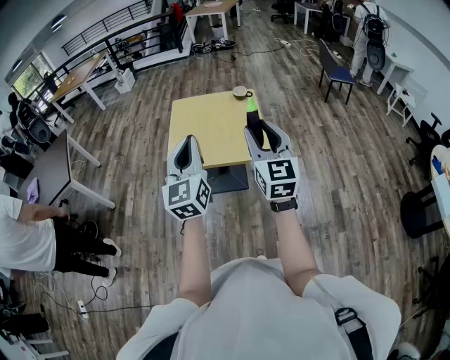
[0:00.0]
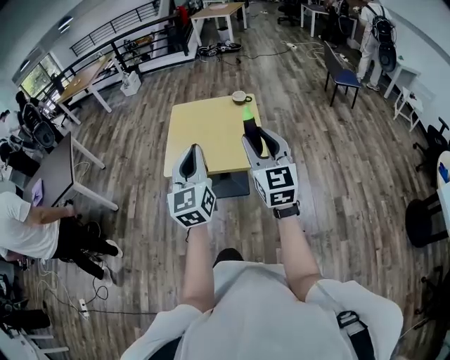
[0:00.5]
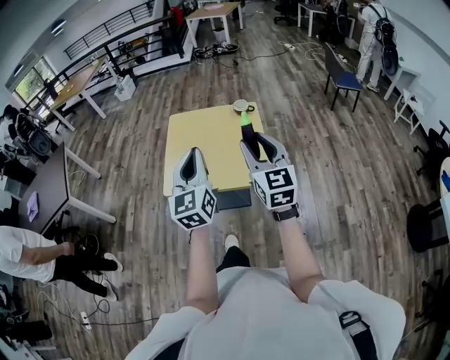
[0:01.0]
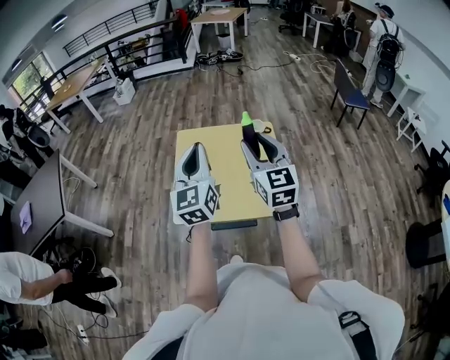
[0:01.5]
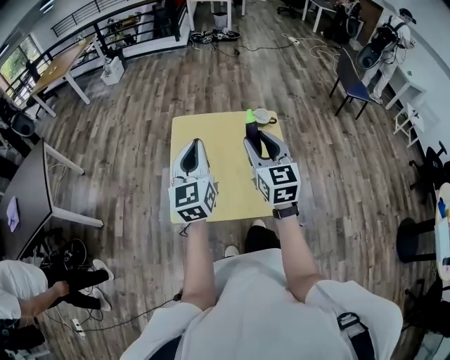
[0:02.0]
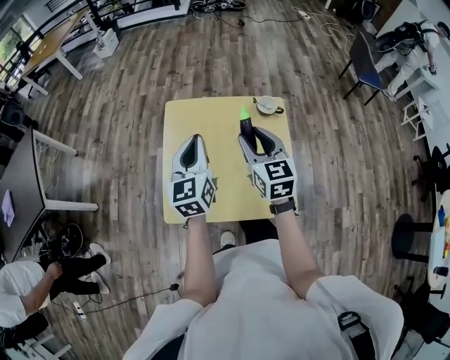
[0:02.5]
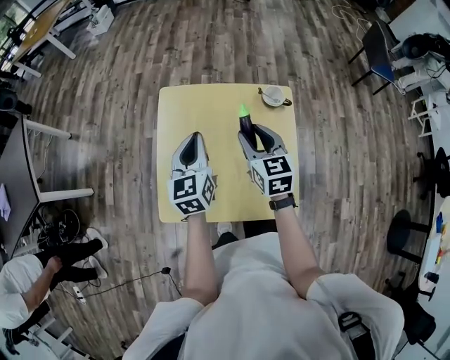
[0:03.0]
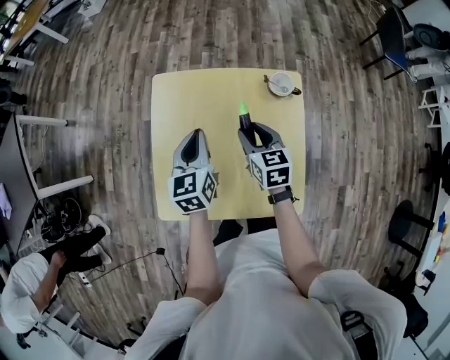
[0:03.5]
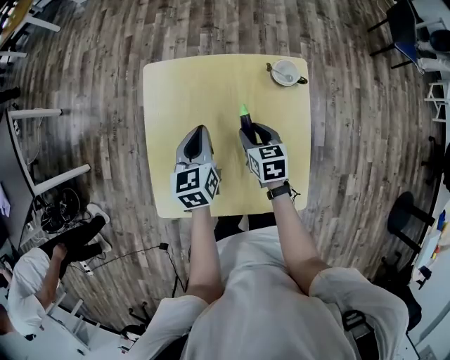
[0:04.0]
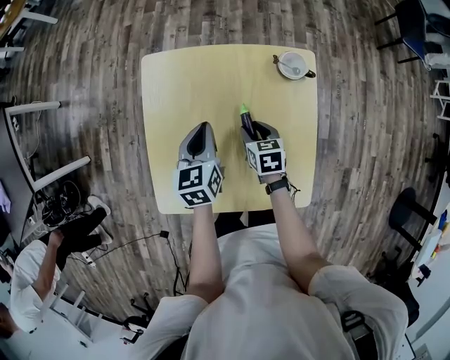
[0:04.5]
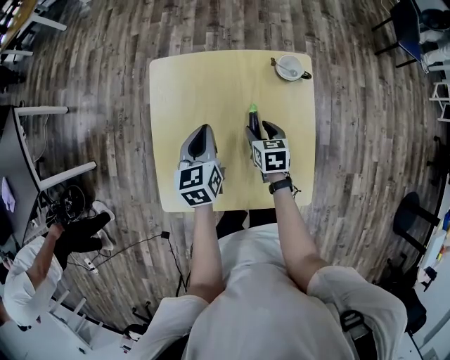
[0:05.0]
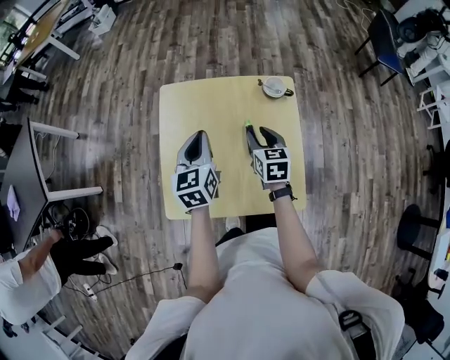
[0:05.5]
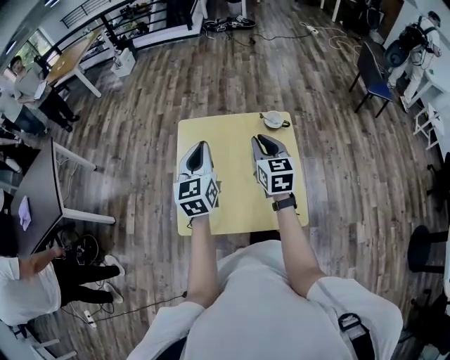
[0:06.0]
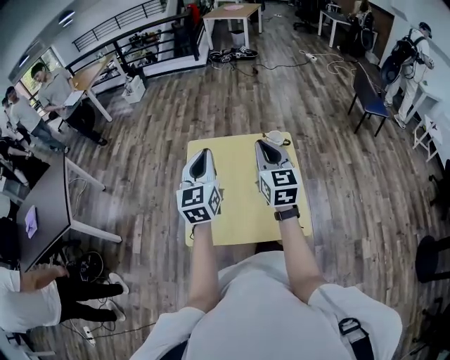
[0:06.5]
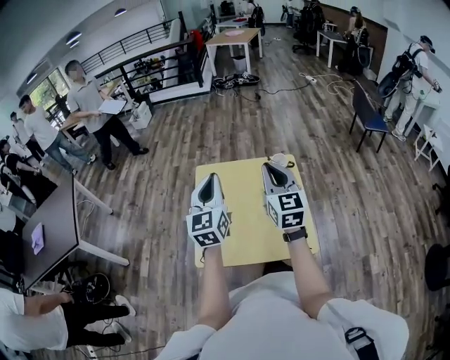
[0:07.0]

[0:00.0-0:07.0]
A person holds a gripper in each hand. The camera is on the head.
0:00.0 to 0:02.0: The grippers both shift forward by some 35 cm.
0:02.0 to 0:03.5: Both grippers travel together downward and forward, some 30 cm. The left gripper rotates some 30 degrees; the right gripper swivels about 30 degrees.
0:03.5 to 0:05.0: The right gripper travels downward by roughly 10 cm, while the left gripper moves downward, roughly 5 cm.
0:05.0 to 0:07.0: Both grippers travel together upward, roughly 35 cm. The left gripper points its fingers roughly 30 degrees further upward. Meanwhile the right gripper tilts its fingers about 50 degrees upward, and closes its fingers.

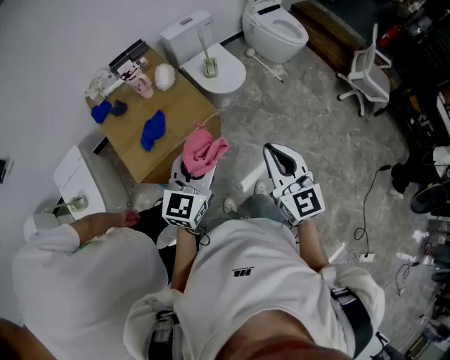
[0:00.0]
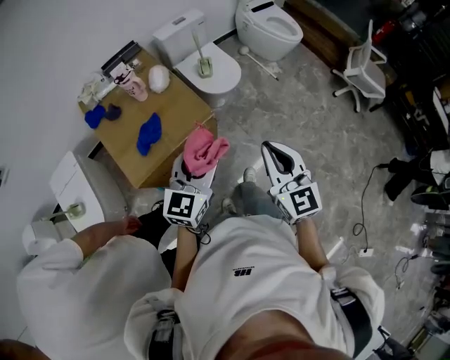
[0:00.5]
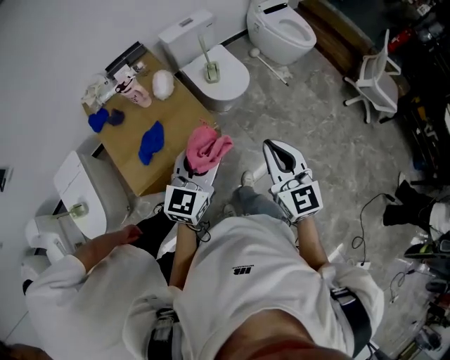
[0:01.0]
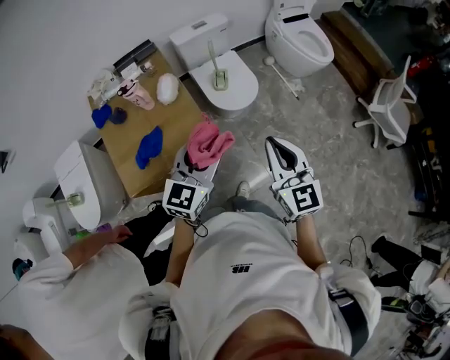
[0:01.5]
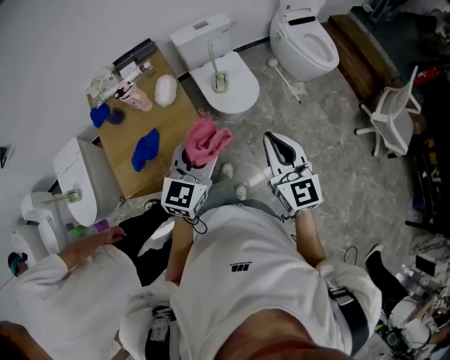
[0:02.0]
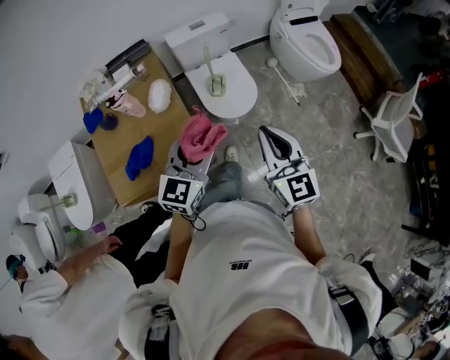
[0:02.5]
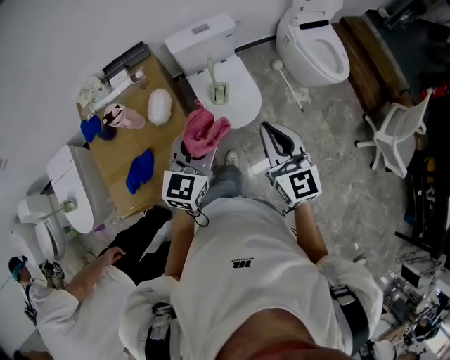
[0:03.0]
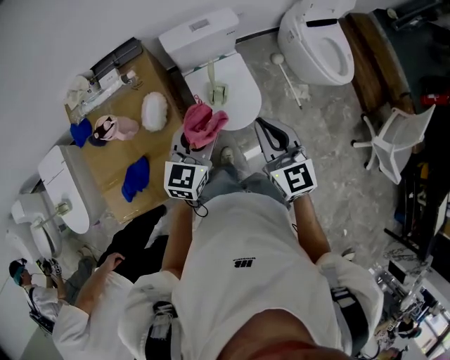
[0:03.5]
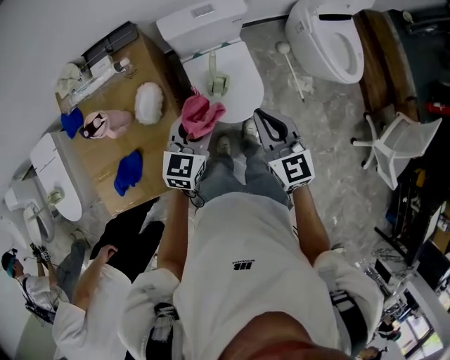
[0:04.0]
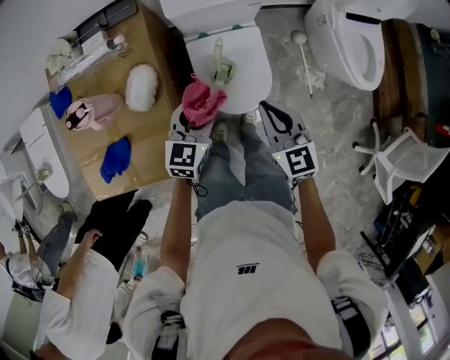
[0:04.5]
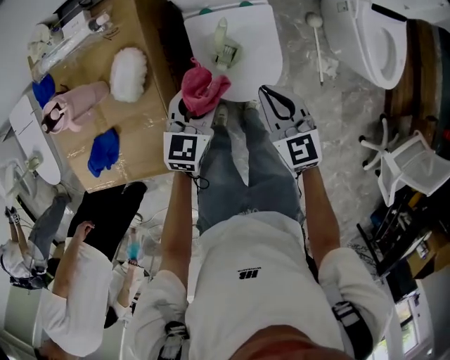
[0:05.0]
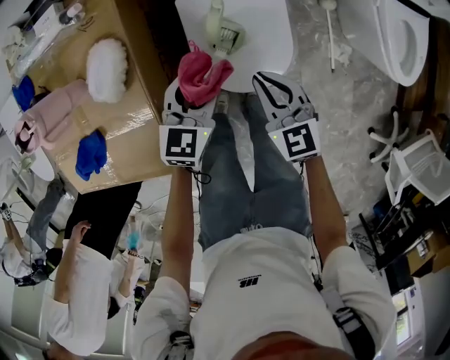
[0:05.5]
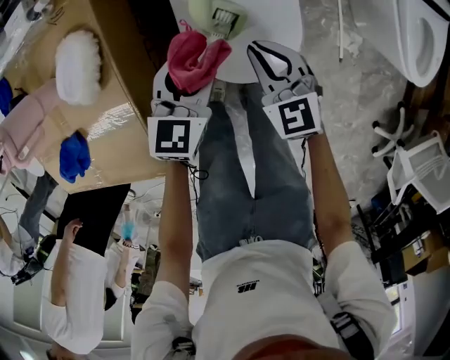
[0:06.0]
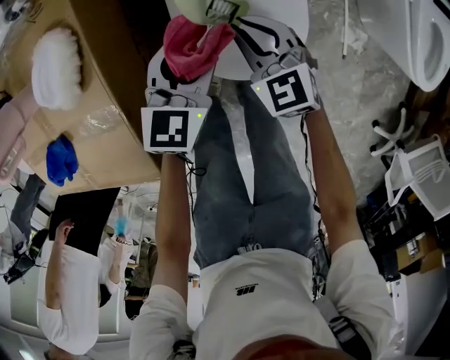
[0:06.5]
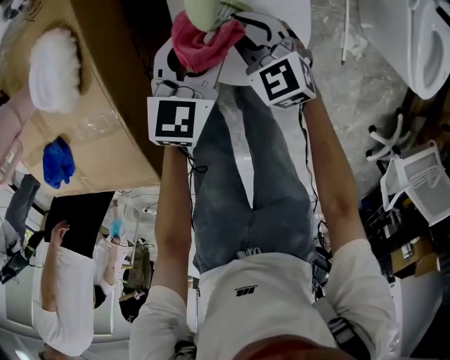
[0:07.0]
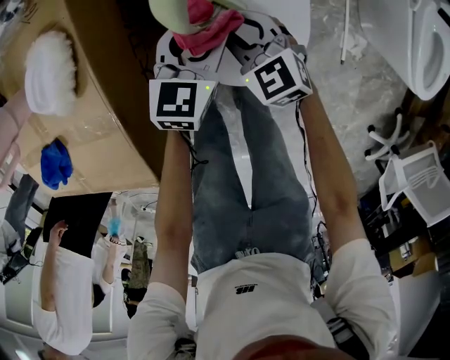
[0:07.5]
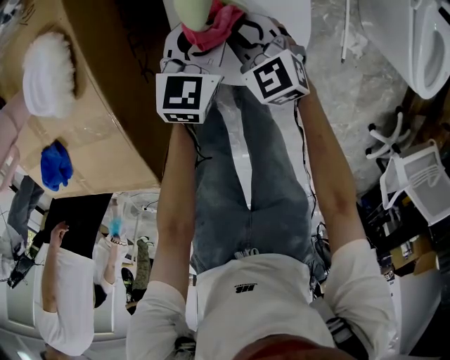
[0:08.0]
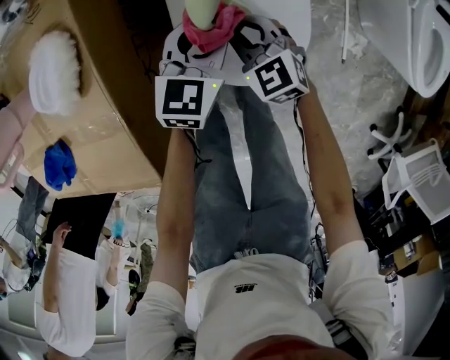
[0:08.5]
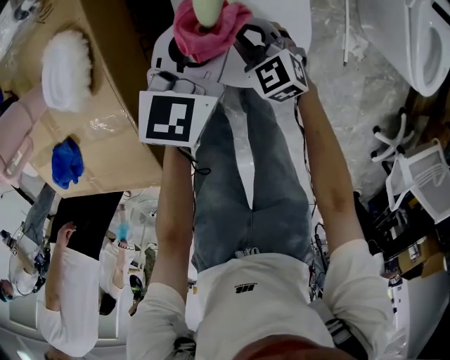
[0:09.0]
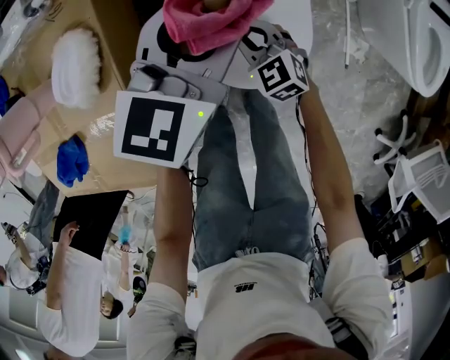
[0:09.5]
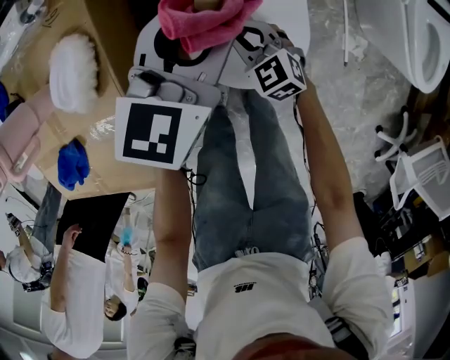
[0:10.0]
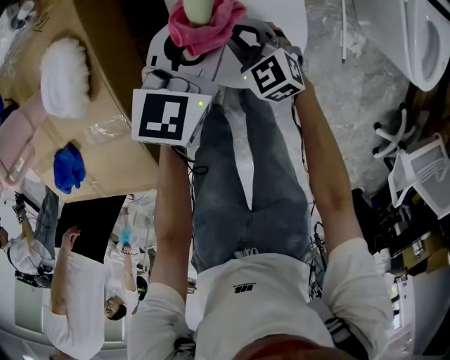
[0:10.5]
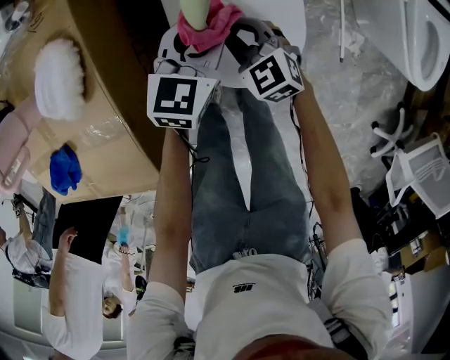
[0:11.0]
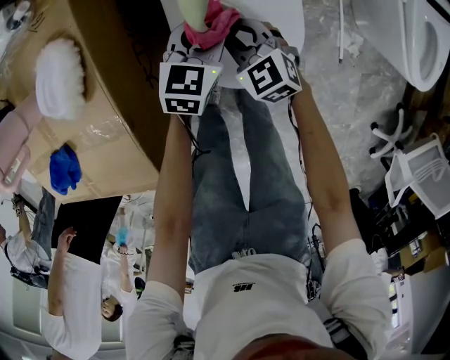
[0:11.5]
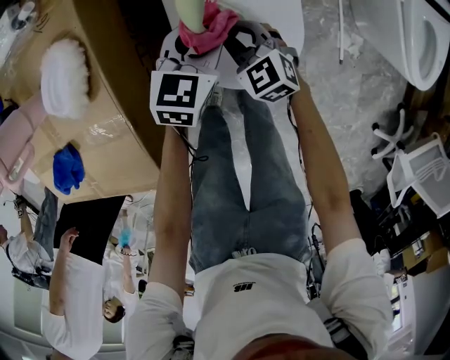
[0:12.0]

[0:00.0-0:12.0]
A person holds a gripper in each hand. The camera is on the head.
0:00.0 to 0:02.0: The grippers both shift forward by some 25 cm.
0:02.0 to 0:04.0: The right gripper is displaced forward by some 40 cm. Meanwhile the left gripper moves forward and downward, approximately 40 cm.
0:04.0 to 0:06.0: Both grippers move downward, some 35 cm. The right gripper rotates about 30 degrees.
0:06.0 to 0:08.0: Both grippers move downward, approximately 10 cm.
0:08.0 to 0:10.0: The left gripper is displaced upward by some 20 cm.
0:10.0 to 0:12.0: The left gripper shifts roughly 15 cm downward.

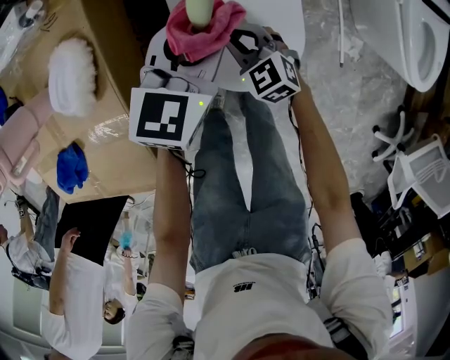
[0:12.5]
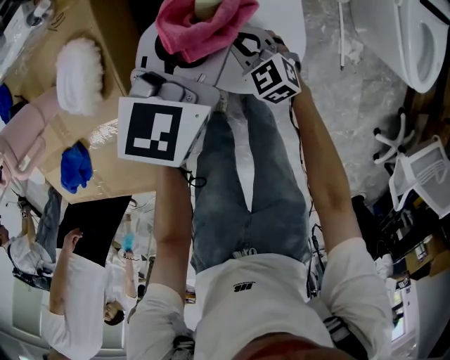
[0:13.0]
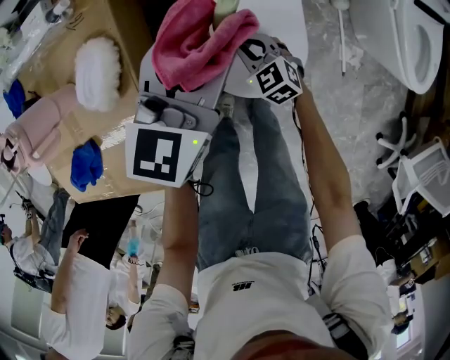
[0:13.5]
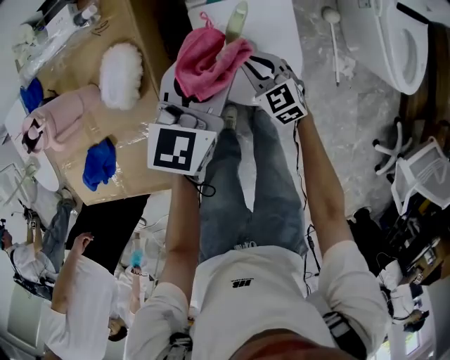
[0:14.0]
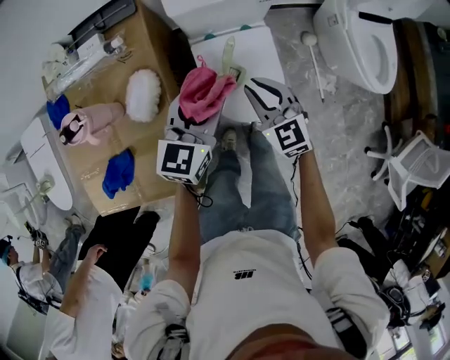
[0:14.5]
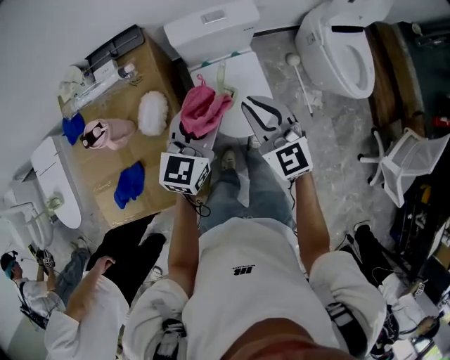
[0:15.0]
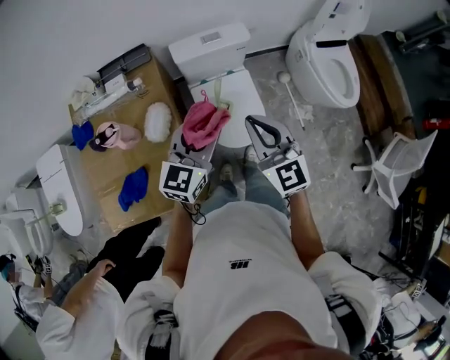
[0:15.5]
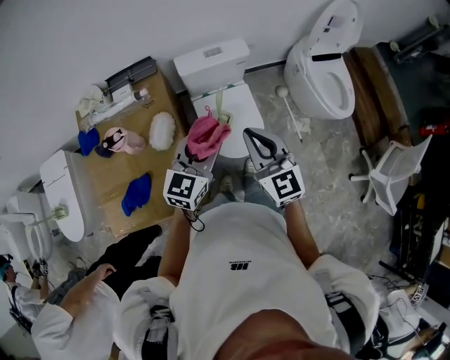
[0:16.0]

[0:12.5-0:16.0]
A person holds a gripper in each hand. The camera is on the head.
0:12.5 to 0:14.5: The two grippers go roughly 25 cm upward. The right gripper changes its angle by approximately 20 degrees.
0:14.5 to 0:16.0: The two grippers go some 25 cm upward and backward.

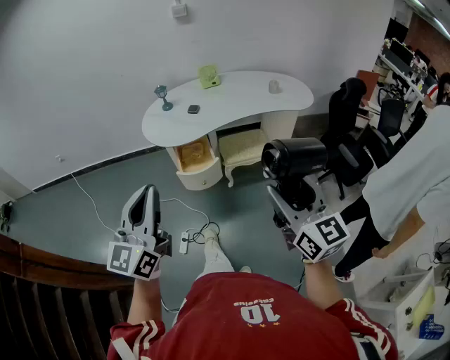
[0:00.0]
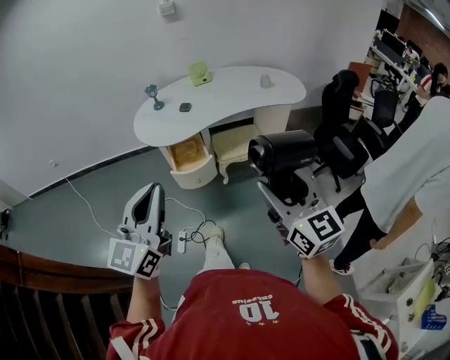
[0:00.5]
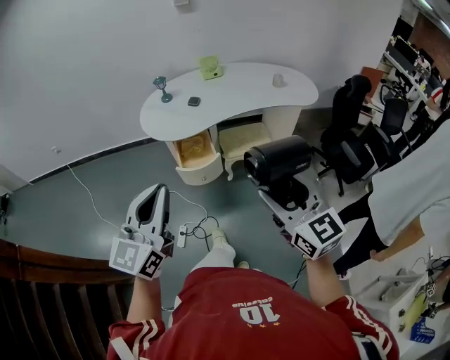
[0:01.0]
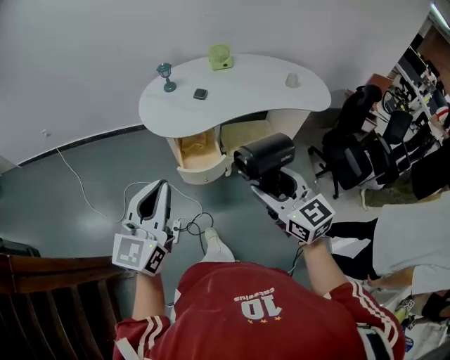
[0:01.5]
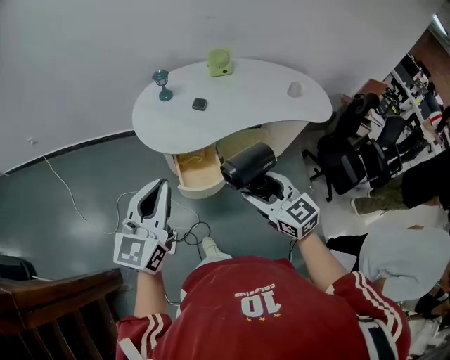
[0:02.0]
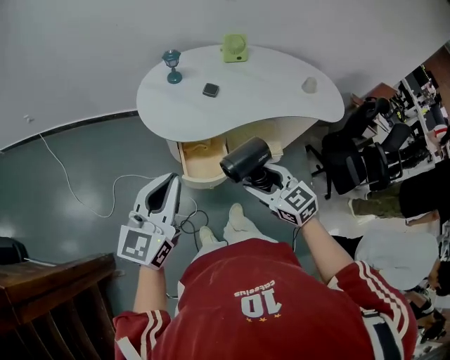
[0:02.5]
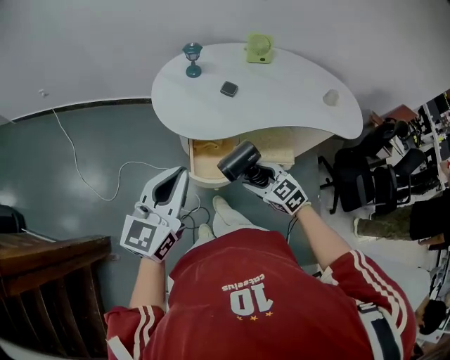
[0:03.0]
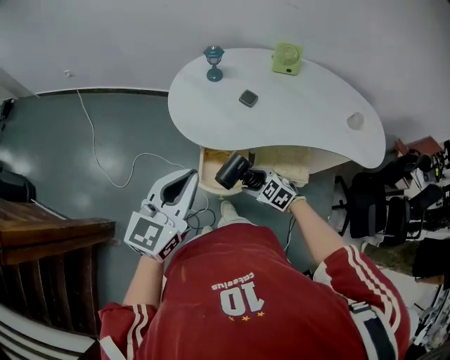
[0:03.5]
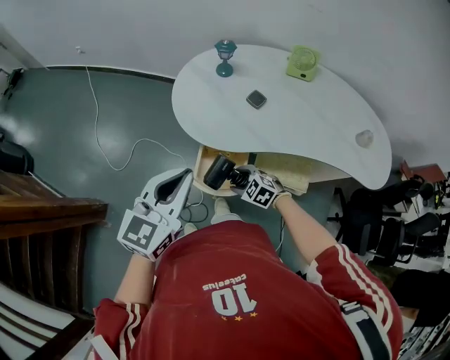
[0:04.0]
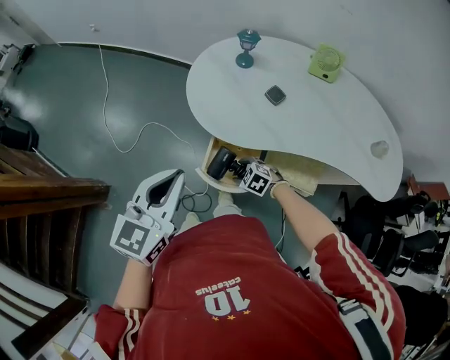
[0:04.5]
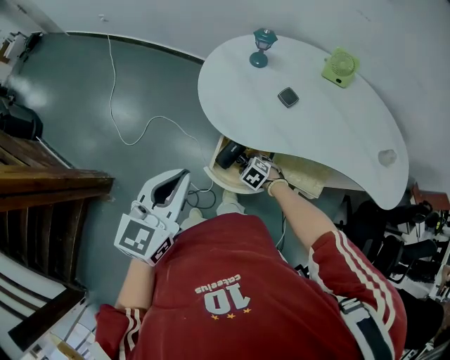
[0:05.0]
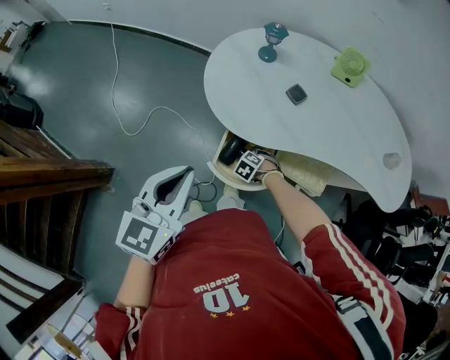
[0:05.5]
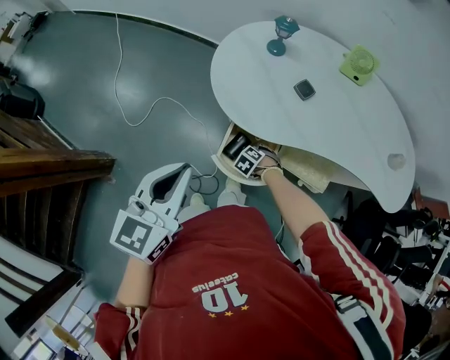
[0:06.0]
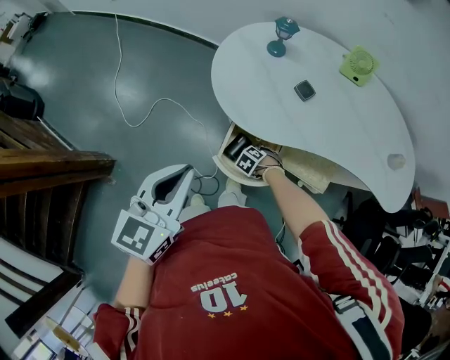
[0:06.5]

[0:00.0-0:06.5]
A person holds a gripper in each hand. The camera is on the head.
0:00.0 to 0:02.0: The right gripper moves forward, downward and to the left, approximately 35 cm, and swivels roughly 30 degrees, while the left gripper is displaced forward by about 25 cm.
0:02.0 to 0:04.5: The right gripper heads downward, covering about 40 cm, and points its fingers approximately 40 degrees further downward. The left gripper moves downward, some 10 cm, and swivels roughly 30 degrees.
0:04.5 to 0:06.5: The right gripper heads downward, covering approximately 10 cm, and swivels about 30 degrees.
